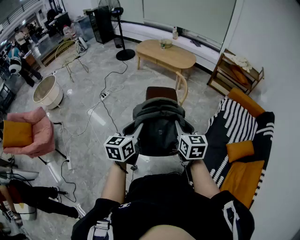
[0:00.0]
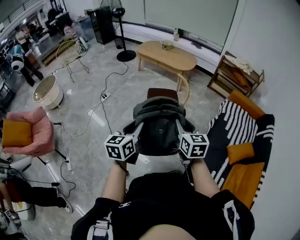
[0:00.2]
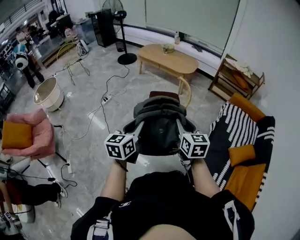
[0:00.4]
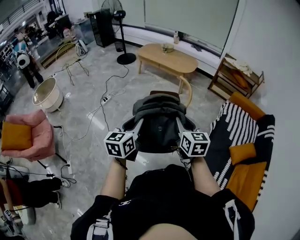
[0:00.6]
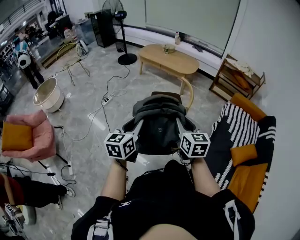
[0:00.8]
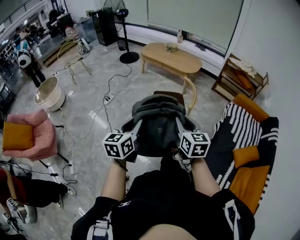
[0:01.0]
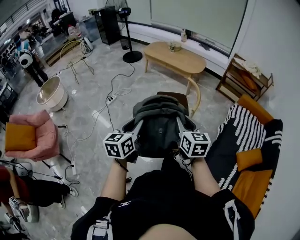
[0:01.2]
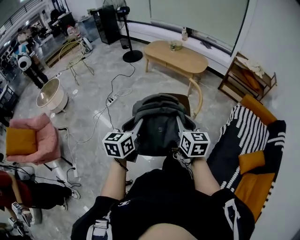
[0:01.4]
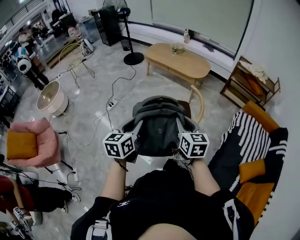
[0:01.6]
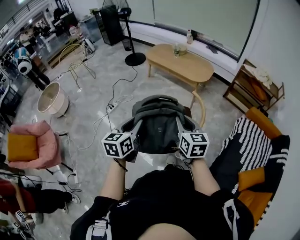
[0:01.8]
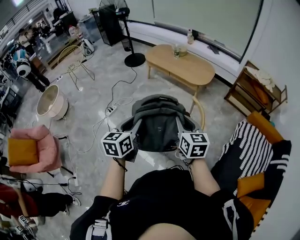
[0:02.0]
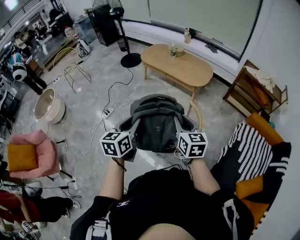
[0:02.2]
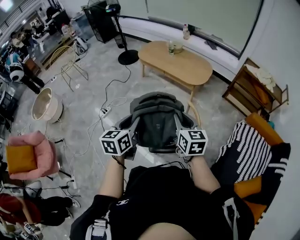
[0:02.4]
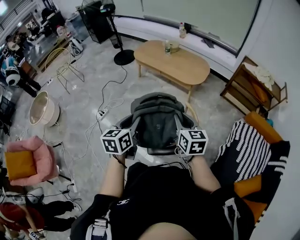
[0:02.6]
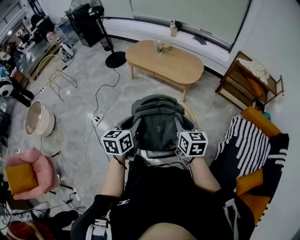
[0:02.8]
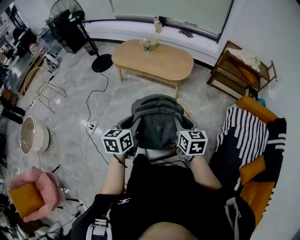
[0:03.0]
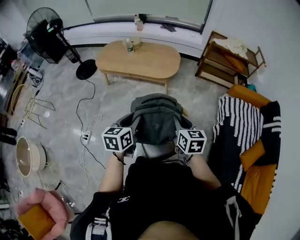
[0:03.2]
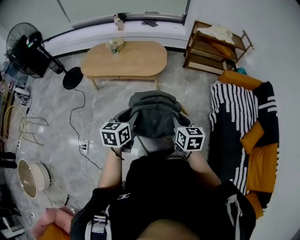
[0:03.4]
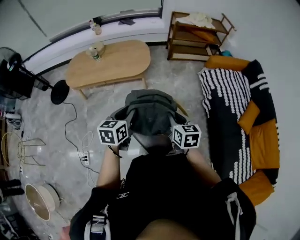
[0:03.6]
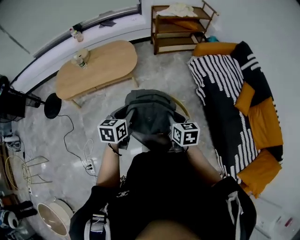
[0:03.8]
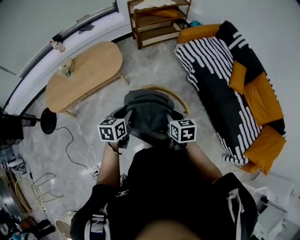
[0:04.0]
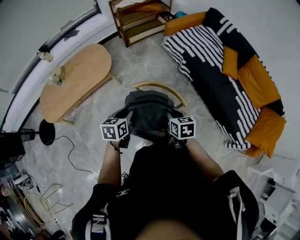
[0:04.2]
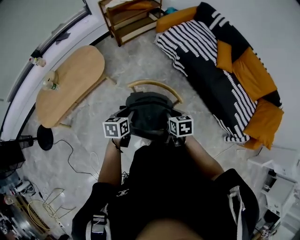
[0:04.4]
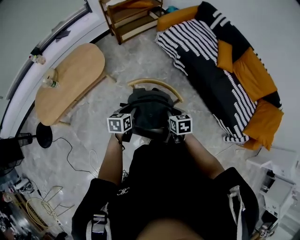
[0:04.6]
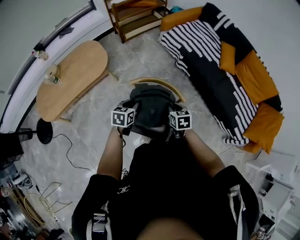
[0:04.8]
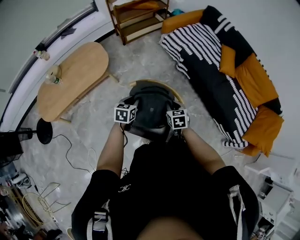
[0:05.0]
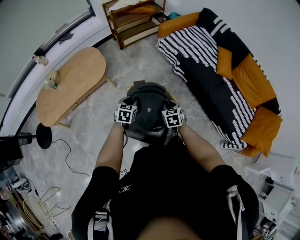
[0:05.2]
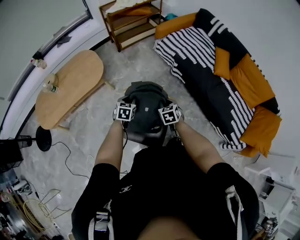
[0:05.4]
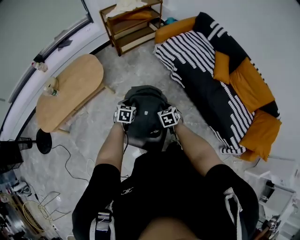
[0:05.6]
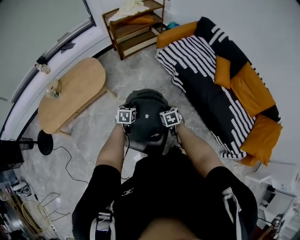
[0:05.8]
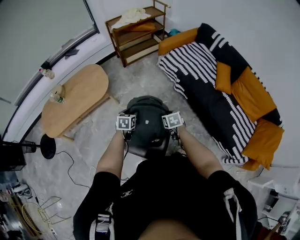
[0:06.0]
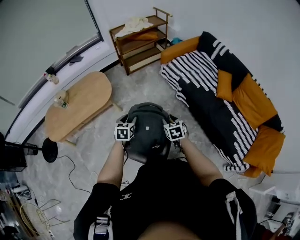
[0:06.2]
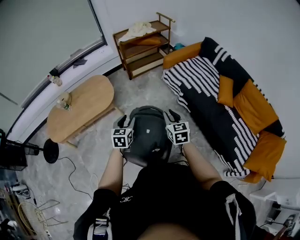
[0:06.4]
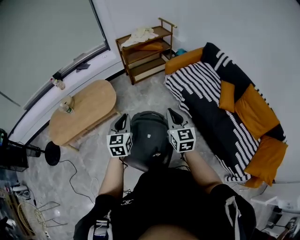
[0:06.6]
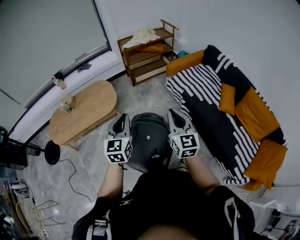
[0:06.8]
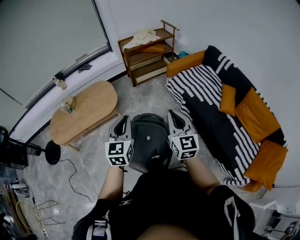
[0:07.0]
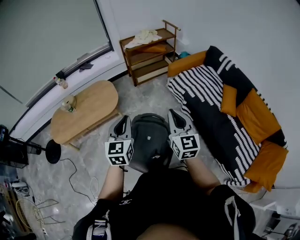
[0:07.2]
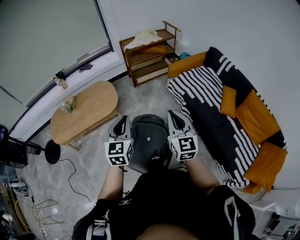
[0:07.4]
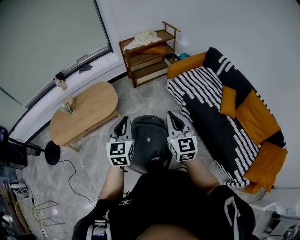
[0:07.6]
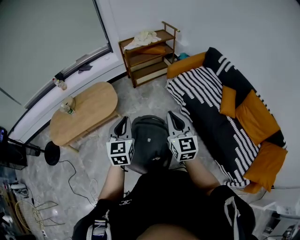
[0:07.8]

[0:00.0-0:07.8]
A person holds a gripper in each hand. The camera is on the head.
0:00.0 to 0:01.6: The right gripper moves forward, approximately 25 cm. Meanwhile the left gripper shifts about 25 cm forward and to the left.
0:01.6 to 0:03.2: The pair of grippers is taken some 50 cm. The right gripper rotates about 30 degrees. The left gripper turns by about 30 degrees.
0:03.2 to 0:04.6: The grippers both shift downward by about 20 cm. The left gripper turns by about 60 degrees, while the right gripper turns by about 50 degrees.
0:04.6 to 0:06.2: The left gripper heads forward, covering some 10 cm, and turns by some 20 degrees. The right gripper heads forward and to the right, covering about 10 cm, and opens its fingers.
0:06.2 to 0:07.8: The grippers both shift upward by about 25 cm. The left gripper changes its angle by roughly 30 degrees, and closes up. The right gripper angles its fingers upward, by roughly 40 degrees, and closes up.

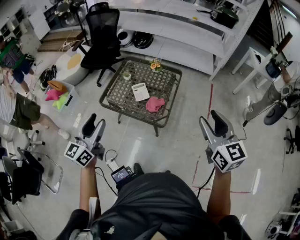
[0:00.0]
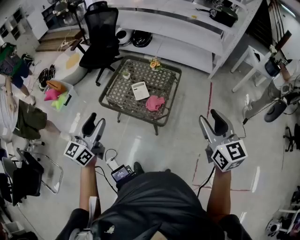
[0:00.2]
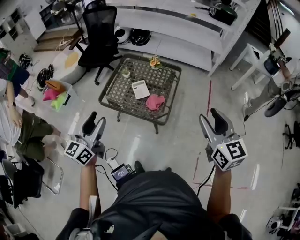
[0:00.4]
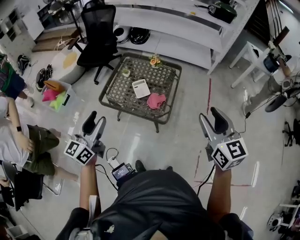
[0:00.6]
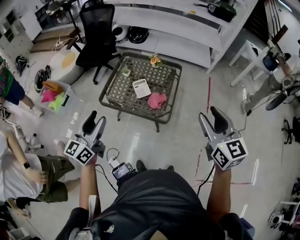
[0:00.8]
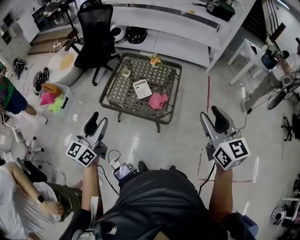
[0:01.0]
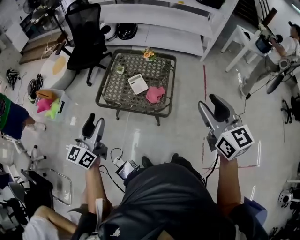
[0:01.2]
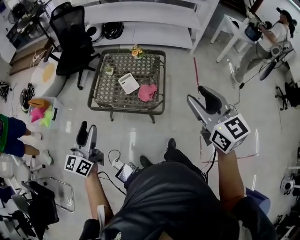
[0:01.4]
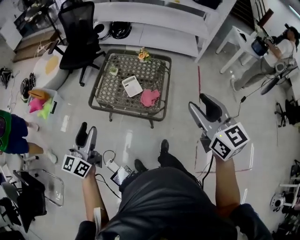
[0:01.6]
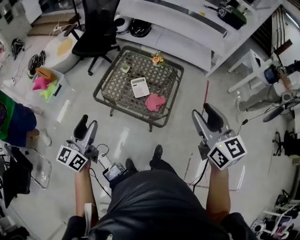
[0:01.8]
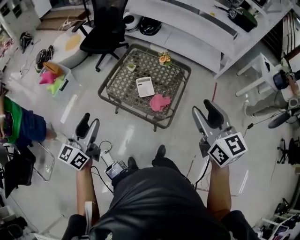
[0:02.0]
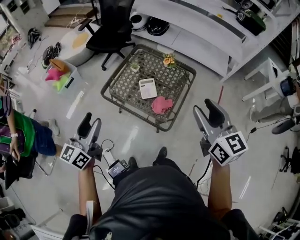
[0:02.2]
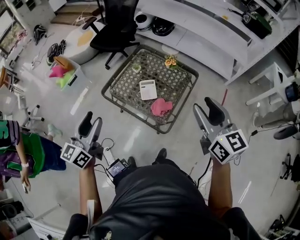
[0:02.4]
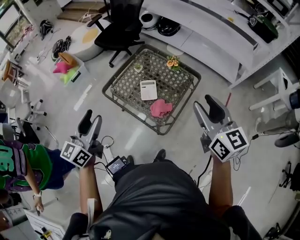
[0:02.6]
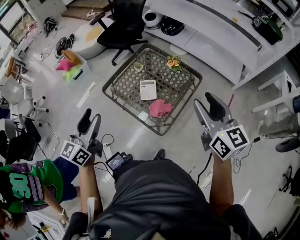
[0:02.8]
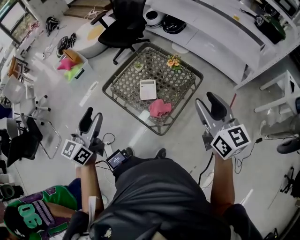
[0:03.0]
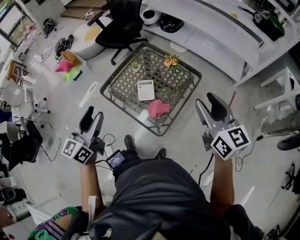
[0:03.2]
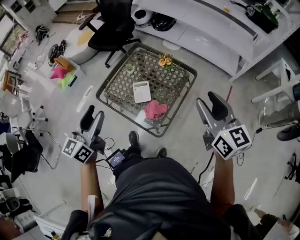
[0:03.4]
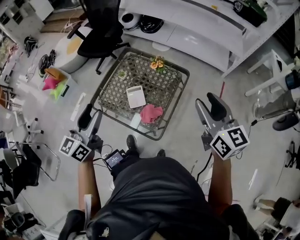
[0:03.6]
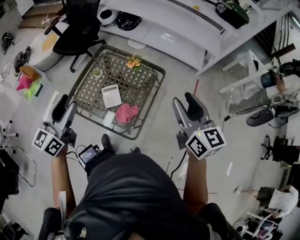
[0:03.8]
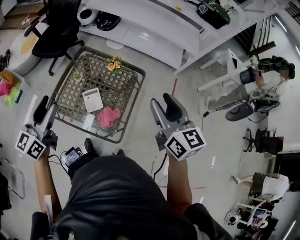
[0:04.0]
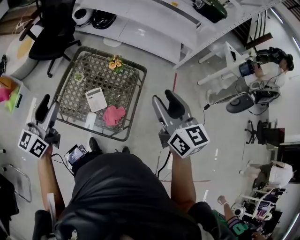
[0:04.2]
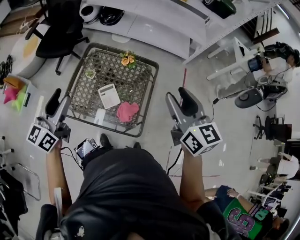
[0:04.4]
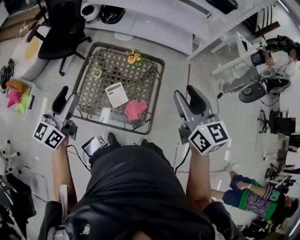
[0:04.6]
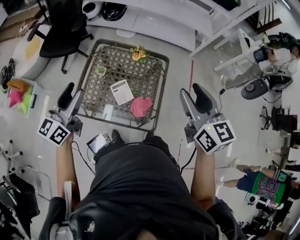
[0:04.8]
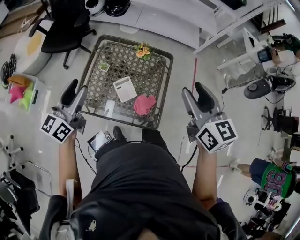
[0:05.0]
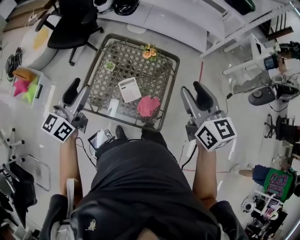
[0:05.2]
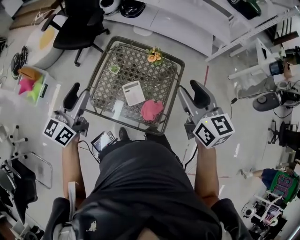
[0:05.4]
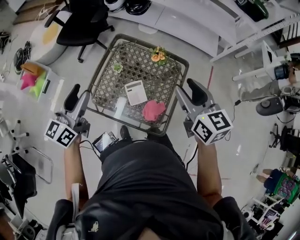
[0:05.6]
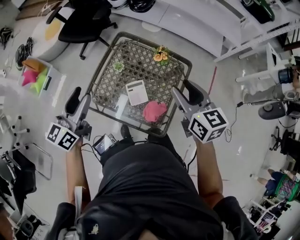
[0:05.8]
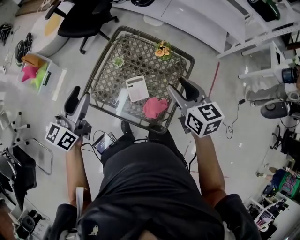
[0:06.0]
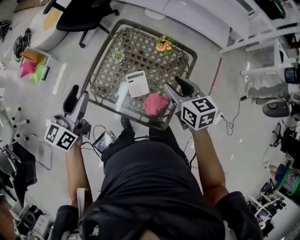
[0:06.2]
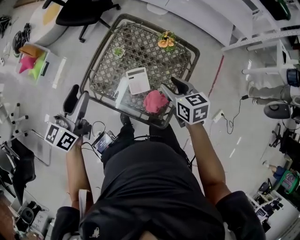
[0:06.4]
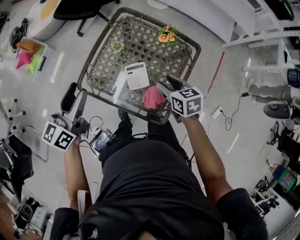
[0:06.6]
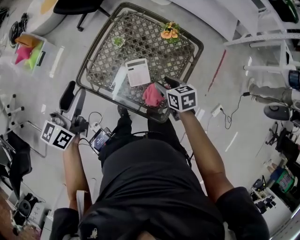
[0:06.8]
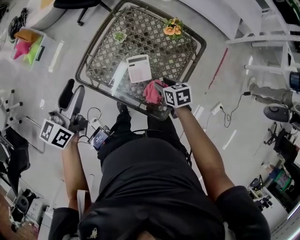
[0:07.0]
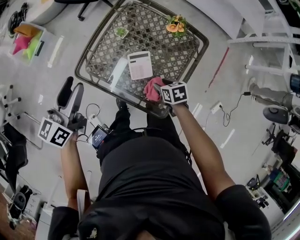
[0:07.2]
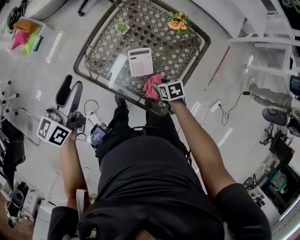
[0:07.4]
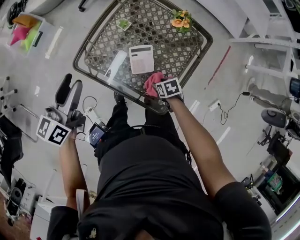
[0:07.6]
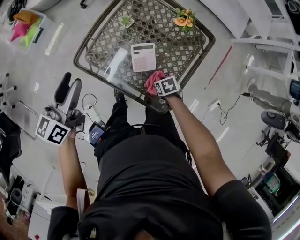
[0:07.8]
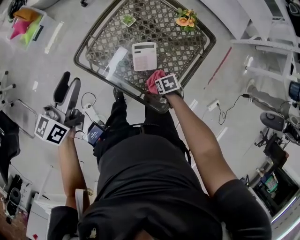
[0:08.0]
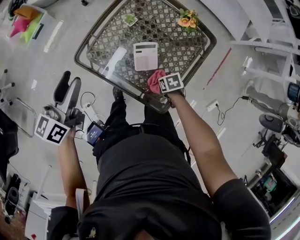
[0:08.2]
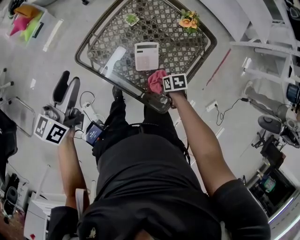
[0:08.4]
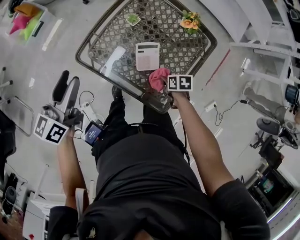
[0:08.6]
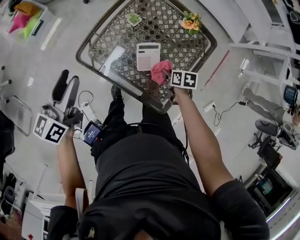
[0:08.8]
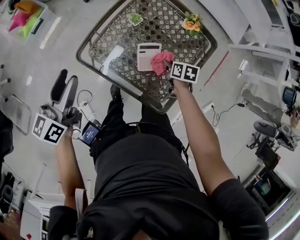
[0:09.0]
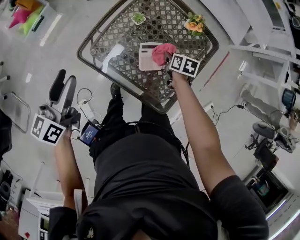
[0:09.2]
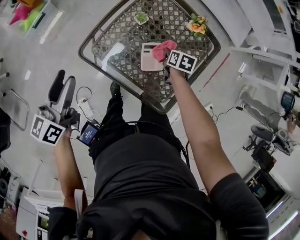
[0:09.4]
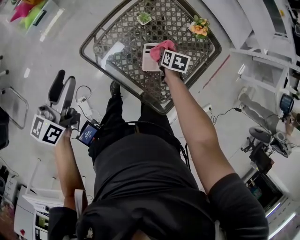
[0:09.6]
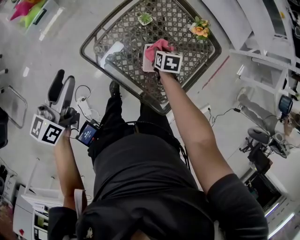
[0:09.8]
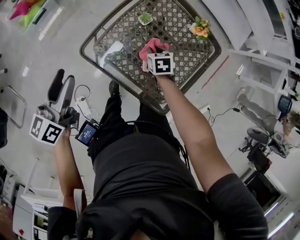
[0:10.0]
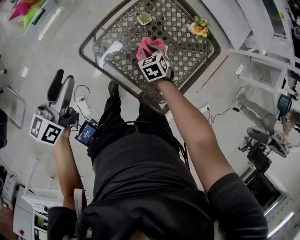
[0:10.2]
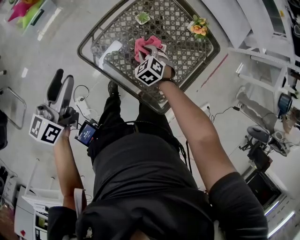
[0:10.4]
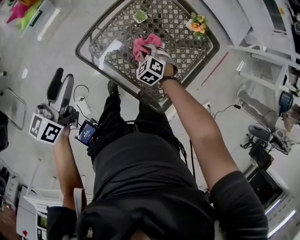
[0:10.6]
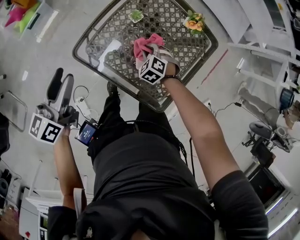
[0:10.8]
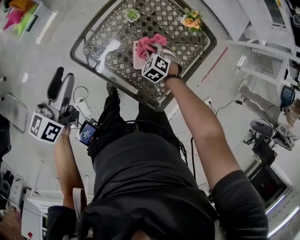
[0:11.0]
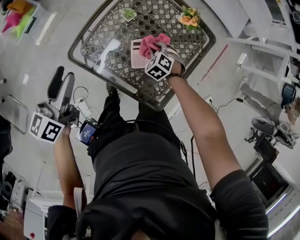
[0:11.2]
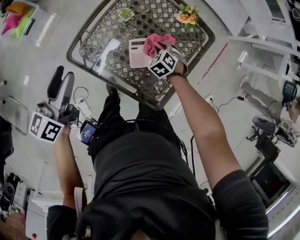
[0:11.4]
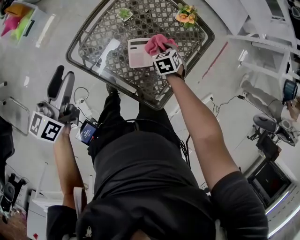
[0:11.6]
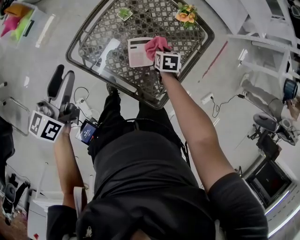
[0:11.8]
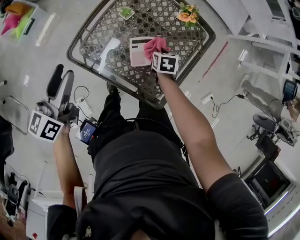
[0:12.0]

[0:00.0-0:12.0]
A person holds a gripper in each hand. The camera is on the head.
0:00.0 to 0:01.6: The right gripper moves to the left, roughly 10 cm. The left gripper shifts about 10 cm to the left and downward.
0:01.6 to 0:03.0: The left gripper is displaced to the right by roughly 15 cm, and swivels some 20 degrees. Meanwhile the right gripper goes some 25 cm forward and to the right, and swivels roughly 20 degrees.
0:03.0 to 0:04.4: The right gripper moves to the left, approximately 5 cm, and rotates roughly 20 degrees, while the left gripper shifts roughly 20 cm forward, and swivels some 30 degrees.
0:04.4 to 0:06.0: The right gripper moves downward, forward and to the left, approximately 20 cm, and swivels roughly 20 degrees, while the left gripper shifts by some 5 cm.
0:06.0 to 0:07.6: The right gripper moves downward, roughly 40 cm, and angles its fingers downward, by roughly 50 degrees. Meanwhile the left gripper is displaced downward by approximately 10 cm.
0:07.6 to 0:09.0: The left gripper shifts by about 5 cm. The right gripper ends up approximately 10 cm from where it was, changes its angle by about 30 degrees, and closes.
0:09.0 to 0:10.4: The right gripper travels to the left by about 15 cm, and rolls counterclockwise, seen from behind, by some 70 degrees.
0:10.4 to 0:12.0: The right gripper travels to the right by roughly 15 cm, and rotates around the line of its fingers by some 60 degrees, clockwise from behind; the left gripper travels to the right by some 5 cm.

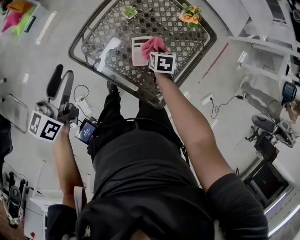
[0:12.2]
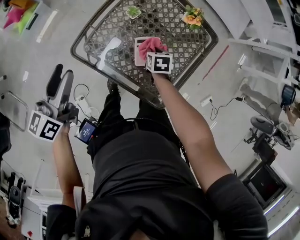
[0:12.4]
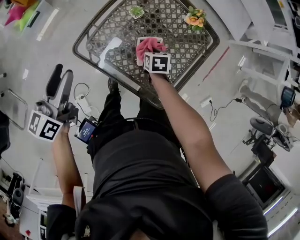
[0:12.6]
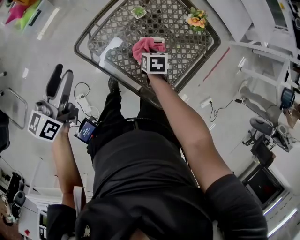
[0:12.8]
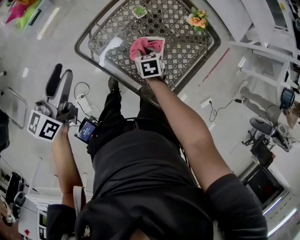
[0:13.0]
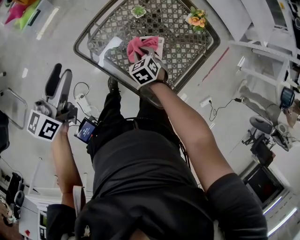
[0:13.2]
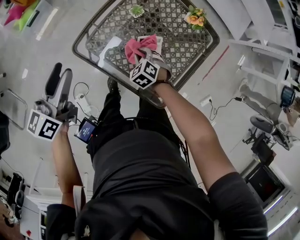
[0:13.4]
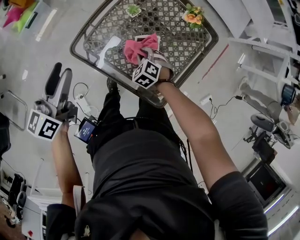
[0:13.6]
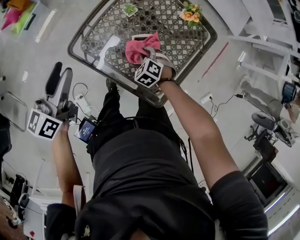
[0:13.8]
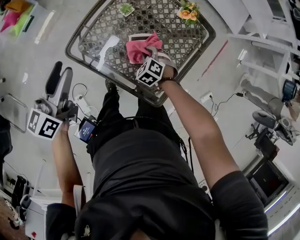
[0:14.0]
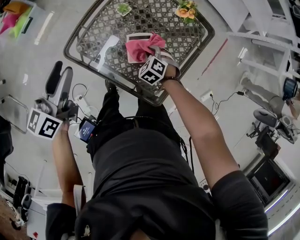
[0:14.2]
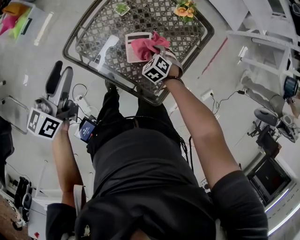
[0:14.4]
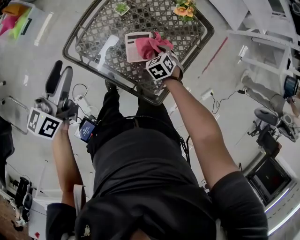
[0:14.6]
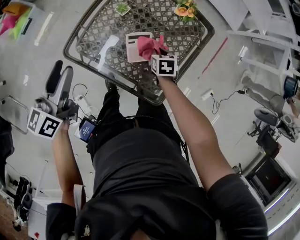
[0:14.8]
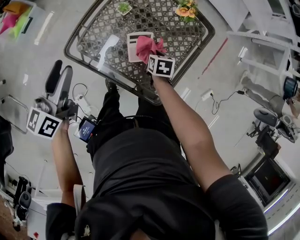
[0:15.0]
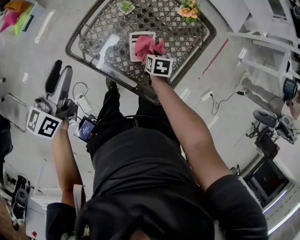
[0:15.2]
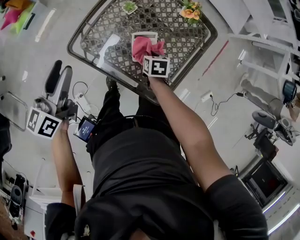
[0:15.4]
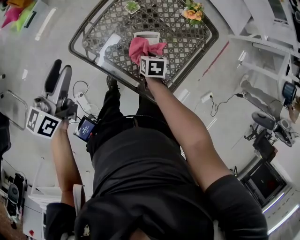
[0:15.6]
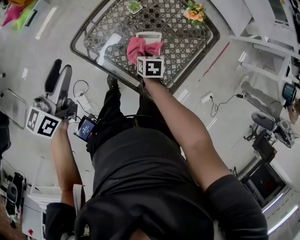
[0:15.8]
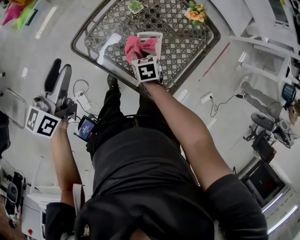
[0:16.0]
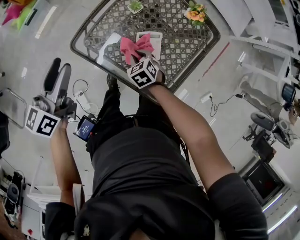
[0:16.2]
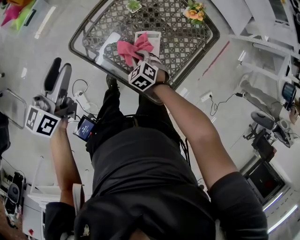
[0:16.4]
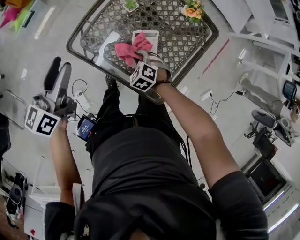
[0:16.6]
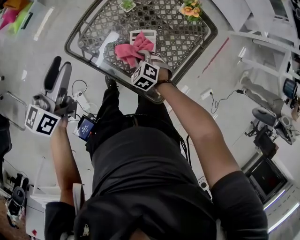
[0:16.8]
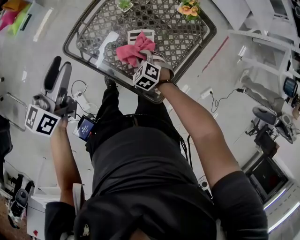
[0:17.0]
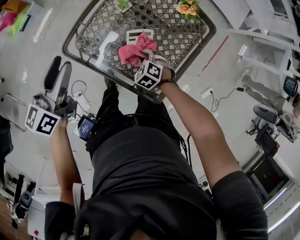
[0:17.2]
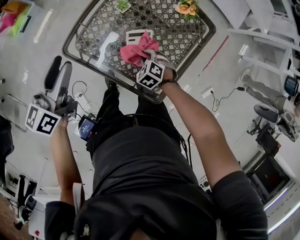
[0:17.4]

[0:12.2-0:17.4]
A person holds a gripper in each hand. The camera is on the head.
0:12.2 to 0:14.0: The right gripper rolls counterclockwise, seen from behind, by some 60 degrees.
0:14.0 to 0:15.6: The right gripper reaches approximately 5 cm to the right, then returns, and rolls clockwise, seen from behind, by approximately 60 degrees.
0:15.6 to 0:17.4: The right gripper reaches some 5 cm to the left, then returns, and rolls counterclockwise, seen from behind, by some 60 degrees.
